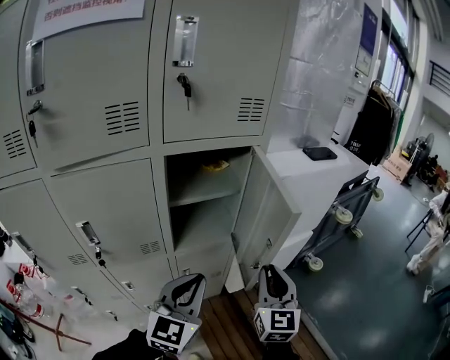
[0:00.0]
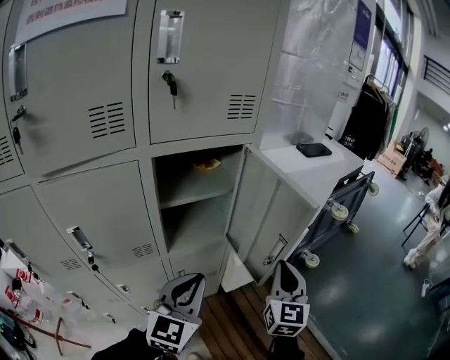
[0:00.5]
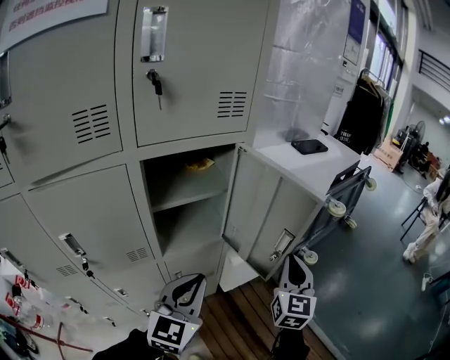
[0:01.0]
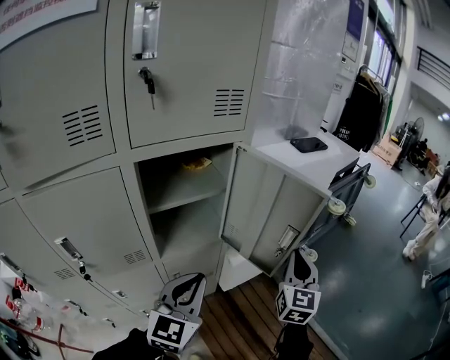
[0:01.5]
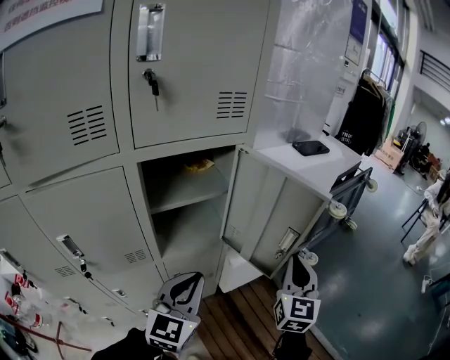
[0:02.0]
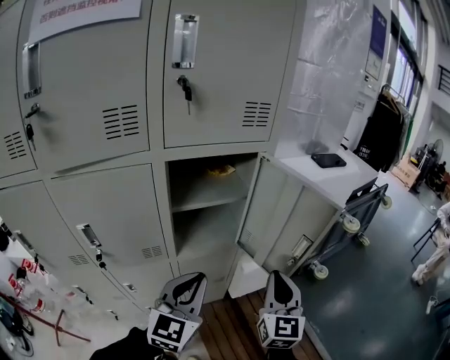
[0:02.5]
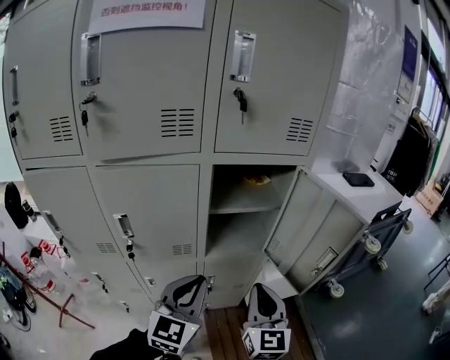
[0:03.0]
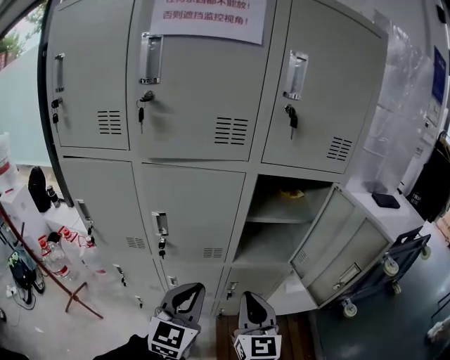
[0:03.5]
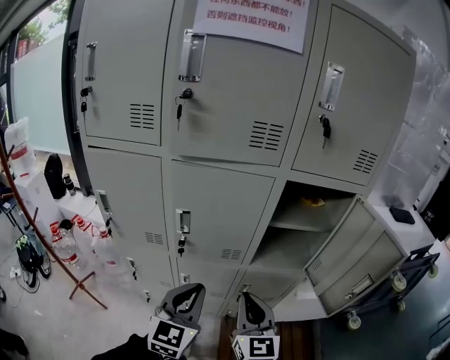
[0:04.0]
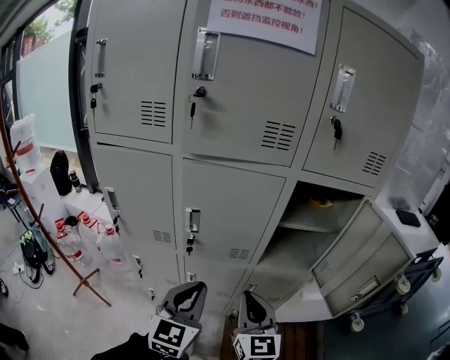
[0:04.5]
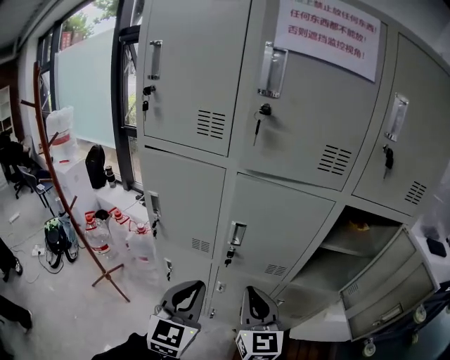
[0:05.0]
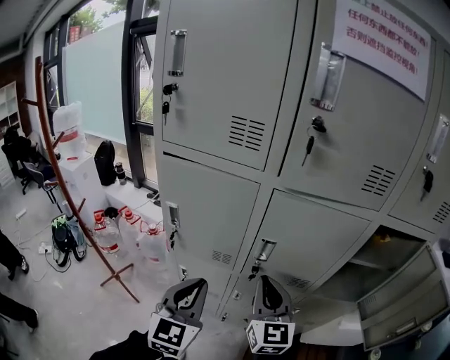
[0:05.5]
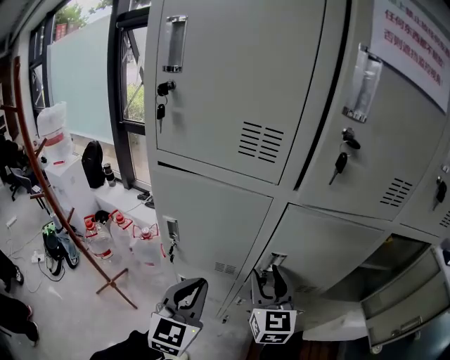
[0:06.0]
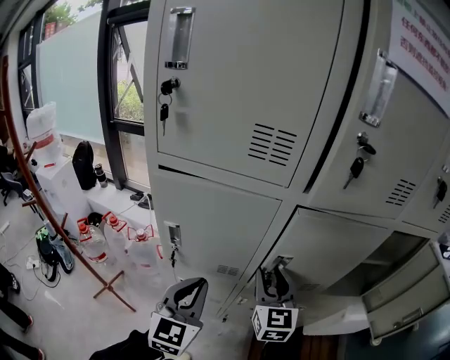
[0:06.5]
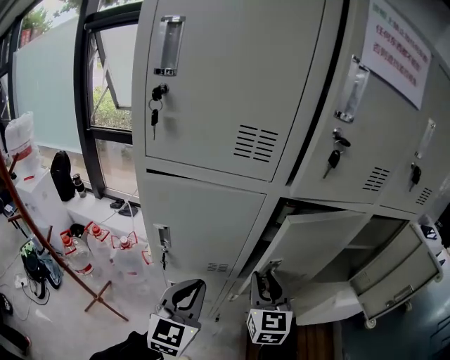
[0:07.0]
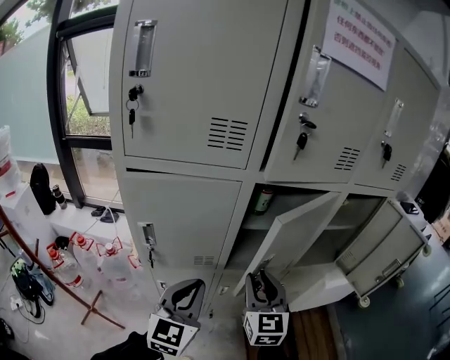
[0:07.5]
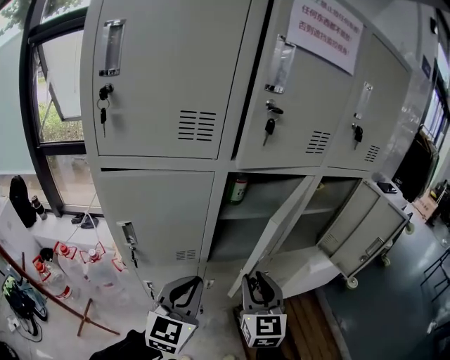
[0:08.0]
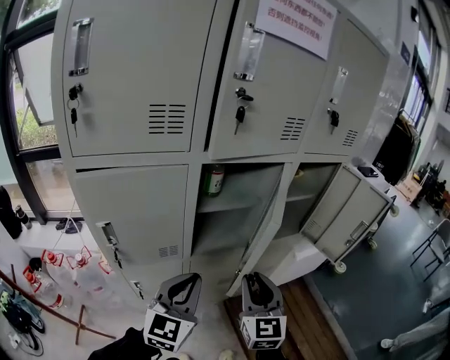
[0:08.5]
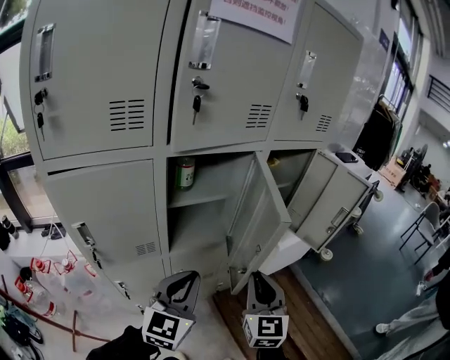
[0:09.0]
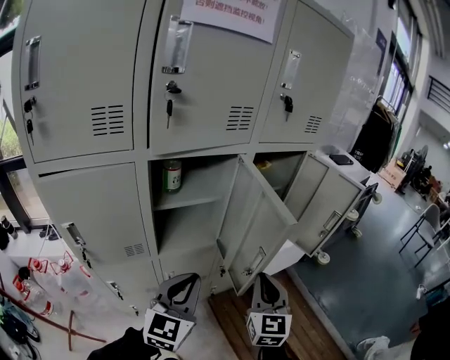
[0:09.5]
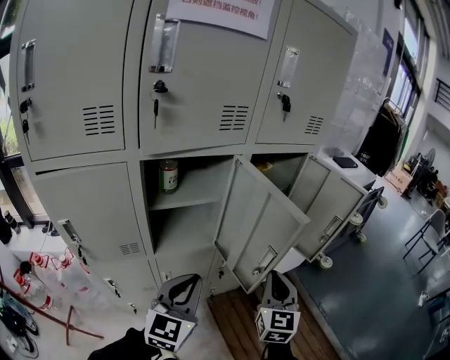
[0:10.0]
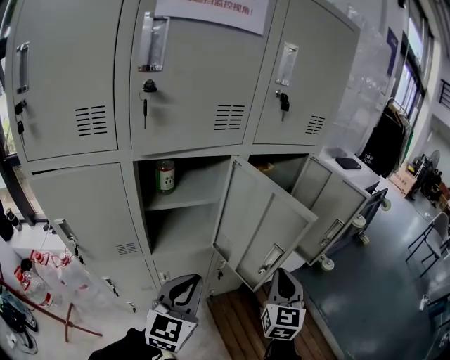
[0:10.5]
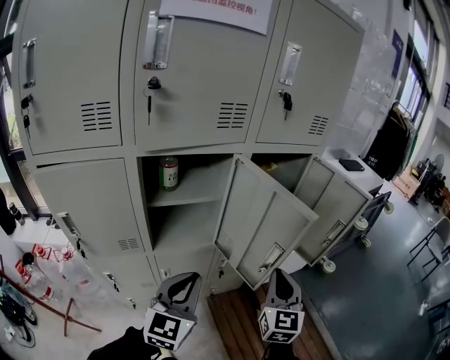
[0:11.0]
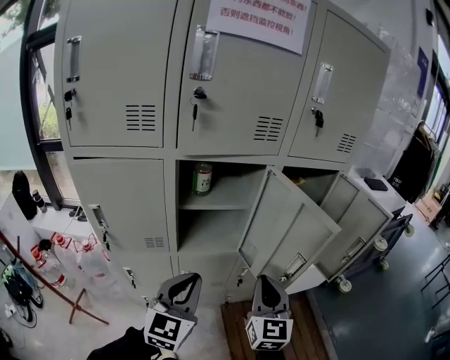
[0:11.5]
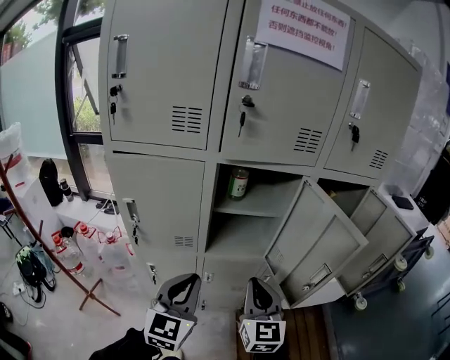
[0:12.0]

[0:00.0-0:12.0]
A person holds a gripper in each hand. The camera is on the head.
0:00.0 to 0:02.0: The right gripper is displaced to the right and forward by about 10 cm. The left gripper is displaced forward by roughly 5 cm.
0:02.0 to 0:04.0: The left gripper moves roughly 25 cm, and turns by some 30 degrees. Meanwhile the right gripper moves approximately 35 cm, and swivels some 50 degrees.
0:04.0 to 0:06.0: Both grippers travel together to the left and forward, approximately 25 cm. The right gripper opens.
0:06.0 to 0:08.0: The right gripper ends up roughly 15 cm from where it was, and turns by about 30 degrees. Meanwhile the left gripper ends up roughly 5 cm from where it was, and turns by roughly 30 degrees.
0:08.0 to 0:10.0: The two grippers go roughly 20 cm to the right. The right gripper swivels approximately 20 degrees, and closes up.
0:10.0 to 0:12.0: The right gripper moves roughly 15 cm, and swivels approximately 30 degrees. The left gripper ends up some 10 cm from where it was, and swivels approximately 20 degrees.

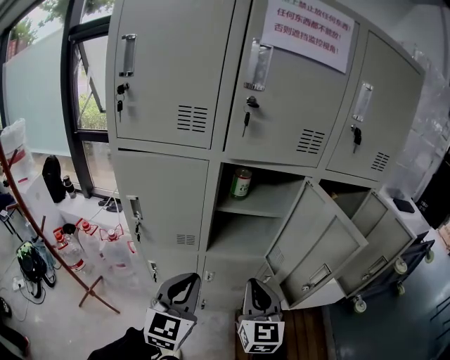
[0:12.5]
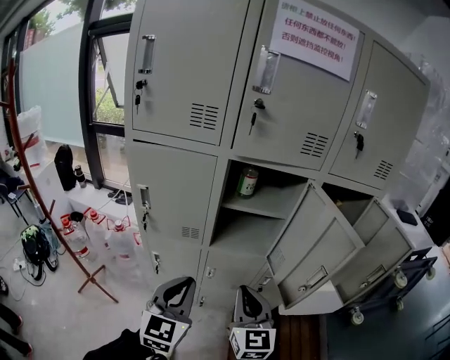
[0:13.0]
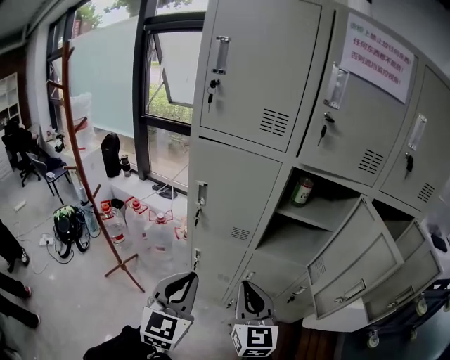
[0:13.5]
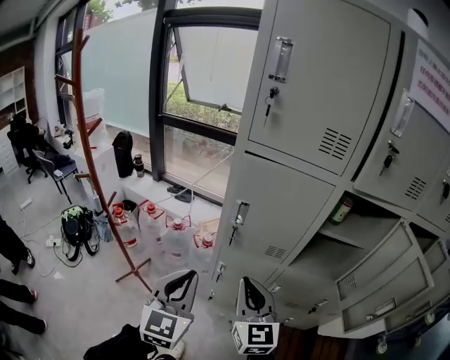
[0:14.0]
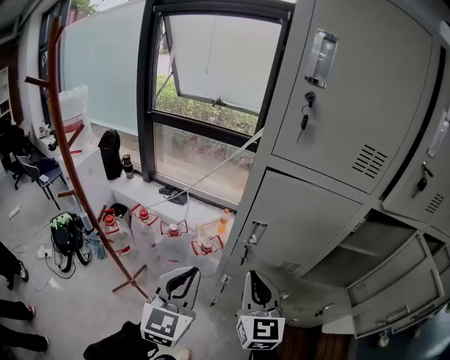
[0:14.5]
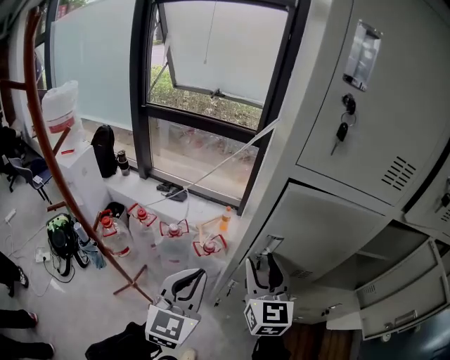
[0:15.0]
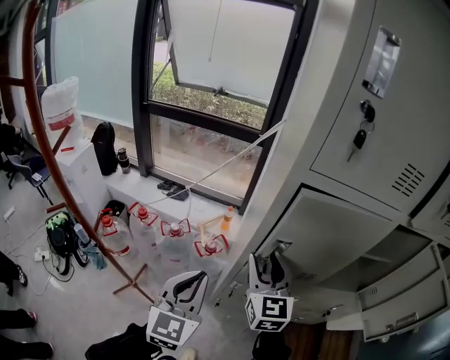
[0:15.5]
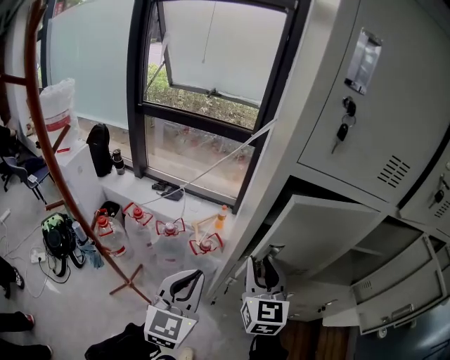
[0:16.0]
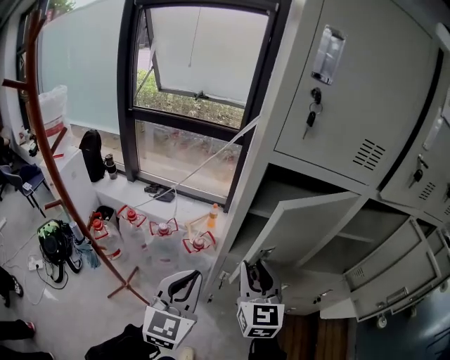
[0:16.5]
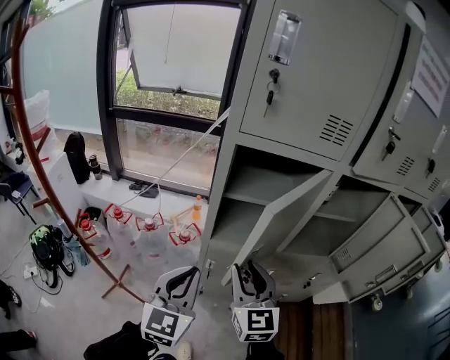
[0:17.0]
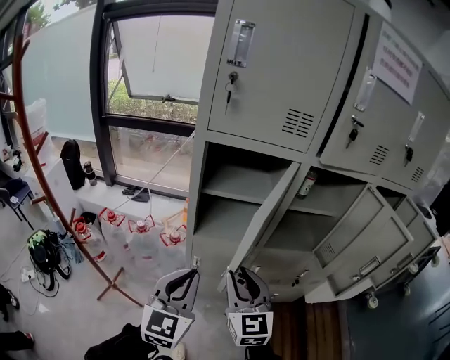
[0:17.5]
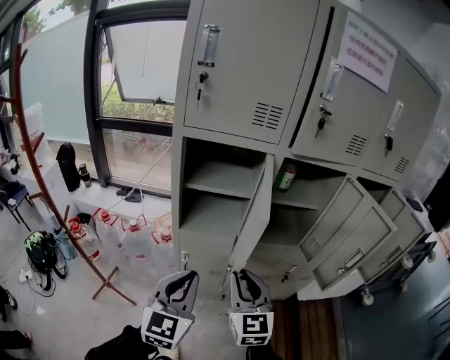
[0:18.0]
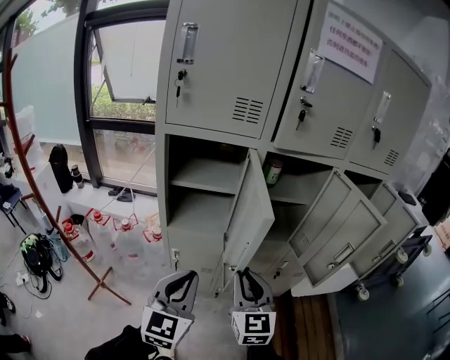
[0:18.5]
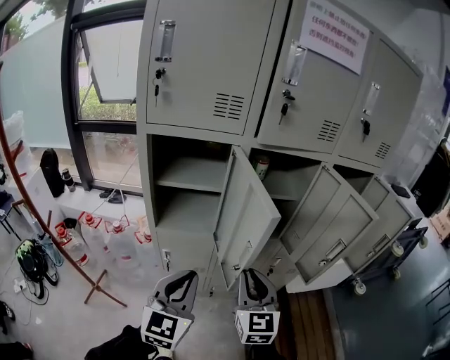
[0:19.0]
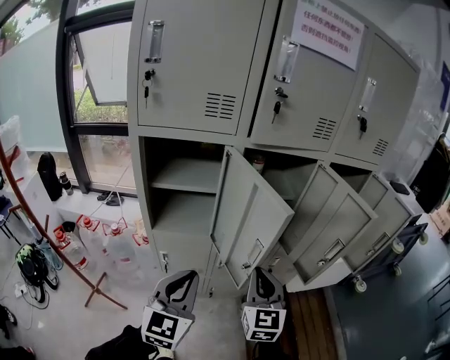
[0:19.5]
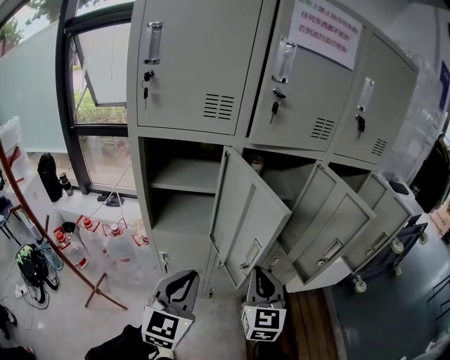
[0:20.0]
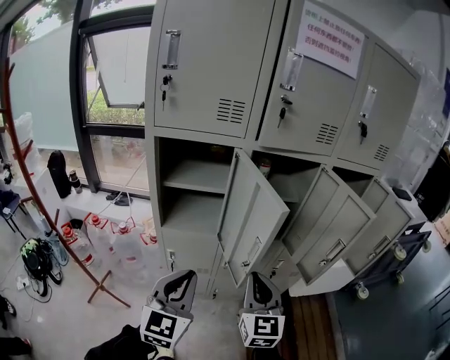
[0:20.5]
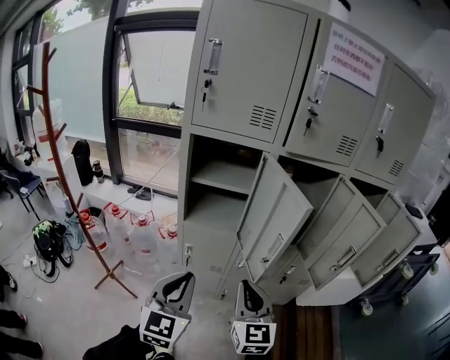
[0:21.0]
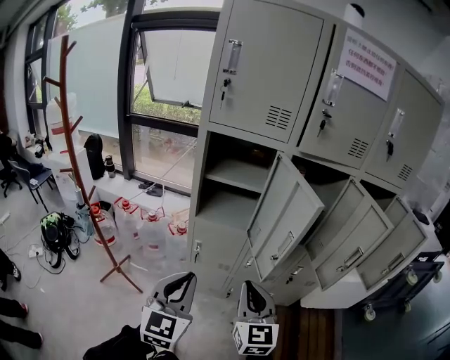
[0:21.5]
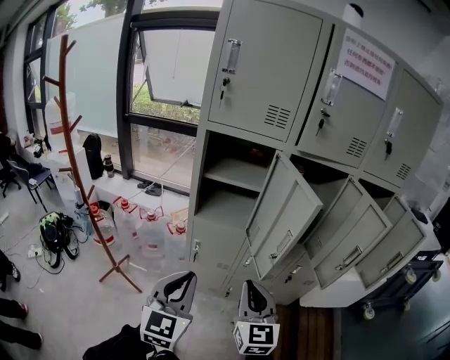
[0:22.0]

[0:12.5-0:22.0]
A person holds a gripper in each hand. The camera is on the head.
0:12.5 to 0:14.5: Both grippers move to the left, roughly 35 cm.
0:14.5 to 0:16.5: The right gripper moves some 10 cm forward and comes back, and opens its fingers.
0:16.5 to 0:18.0: The two grippers go some 20 cm to the right and backward.
0:18.0 to 0:20.0: The right gripper heads to the right, covering about 15 cm; the left gripper shifts roughly 10 cm to the right.
0:20.0 to 0:22.0: The two grippers go some 15 cm backward and to the left.

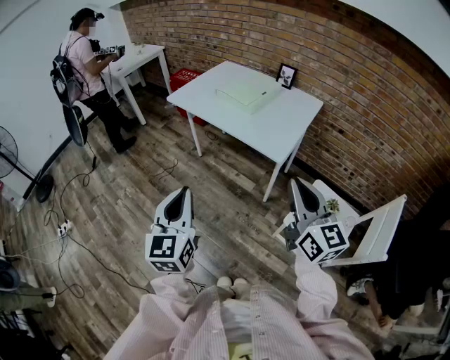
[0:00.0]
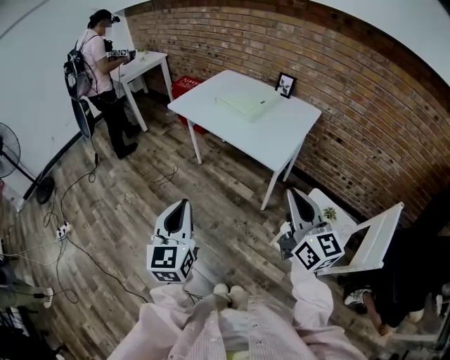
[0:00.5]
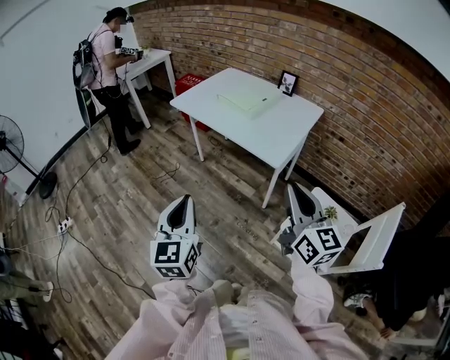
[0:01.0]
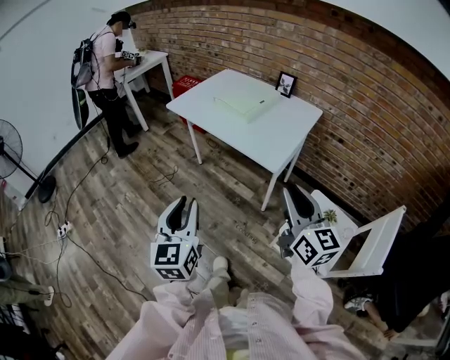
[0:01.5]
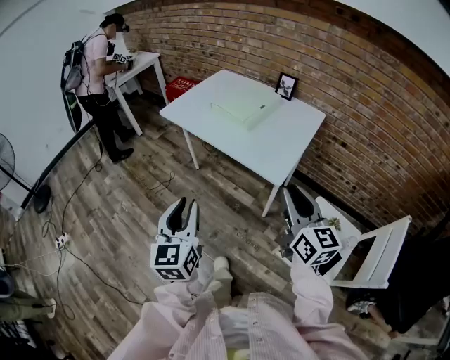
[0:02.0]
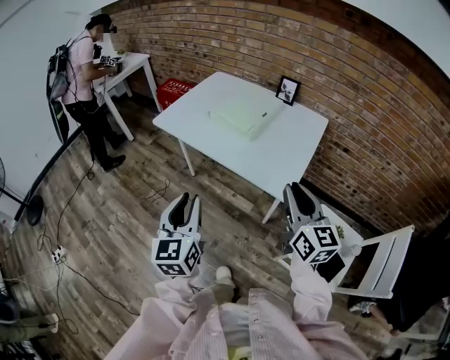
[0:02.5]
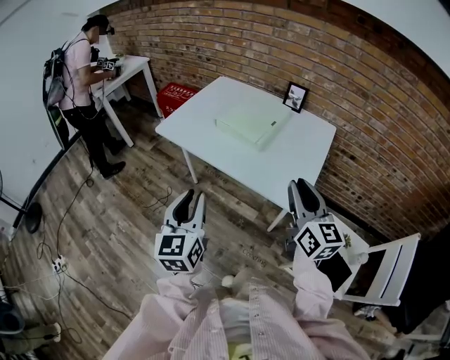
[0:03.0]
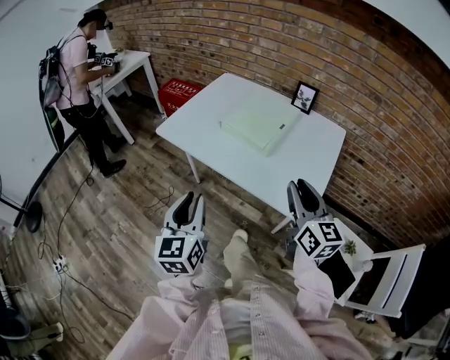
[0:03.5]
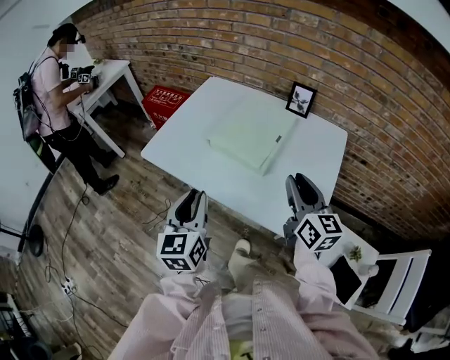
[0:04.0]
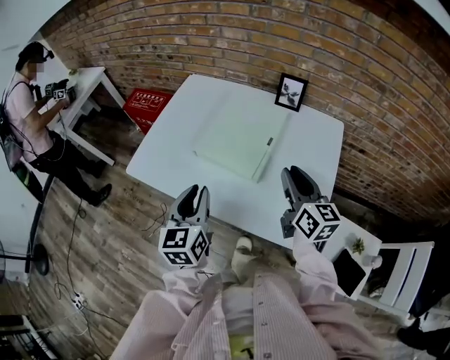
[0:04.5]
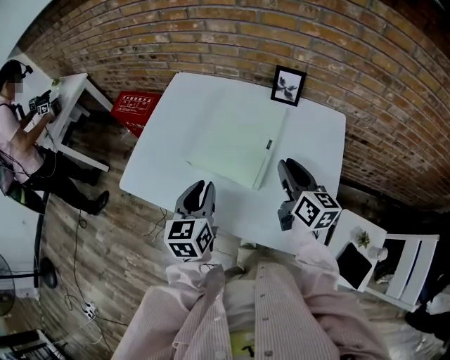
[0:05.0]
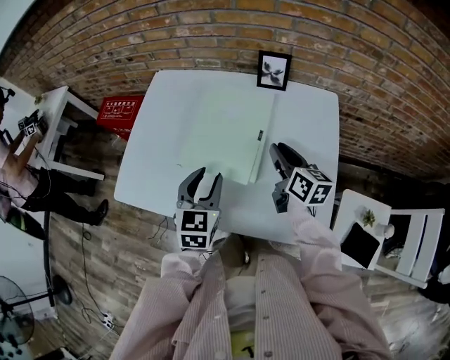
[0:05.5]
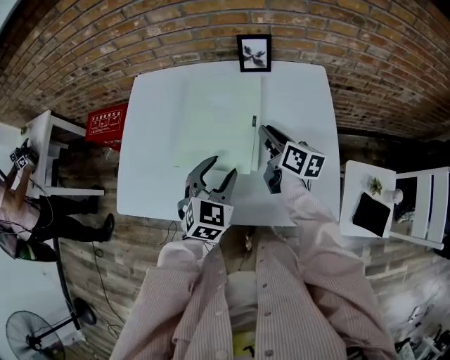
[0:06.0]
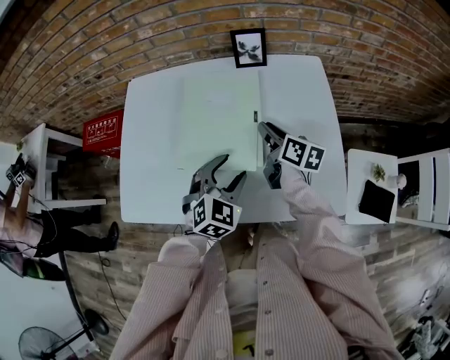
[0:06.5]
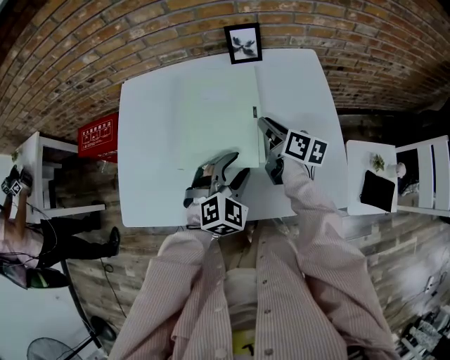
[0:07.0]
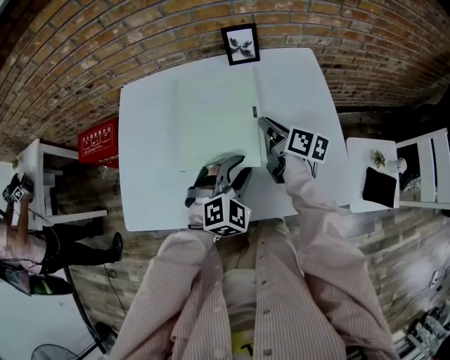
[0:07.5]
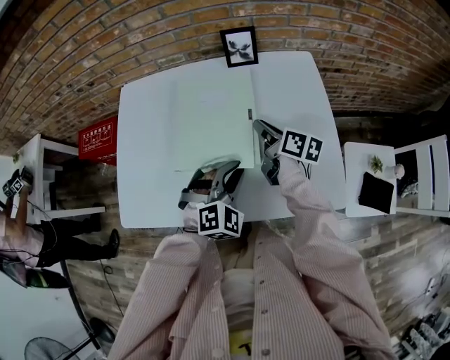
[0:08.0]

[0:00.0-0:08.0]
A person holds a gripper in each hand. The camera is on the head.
0:00.0 to 0:02.0: The grippers both shift forward by about 10 cm. The left gripper opens its fingers.
0:02.0 to 0:04.0: The two grippers go roughly 35 cm forward.
0:04.0 to 0:06.0: The right gripper is displaced forward and downward by about 25 cm, and rotates some 40 degrees; the left gripper travels forward, to the right and downward by approximately 25 cm, rotates roughly 60 degrees, and opens.
0:06.0 to 0:08.0: The left gripper swivels roughly 40 degrees, and closes its fingers.
